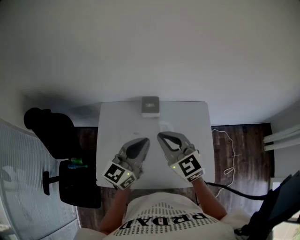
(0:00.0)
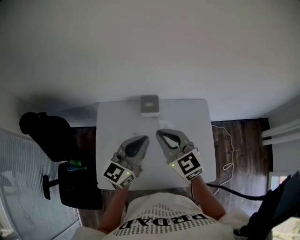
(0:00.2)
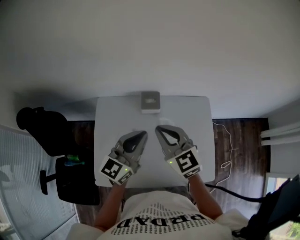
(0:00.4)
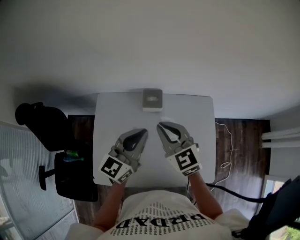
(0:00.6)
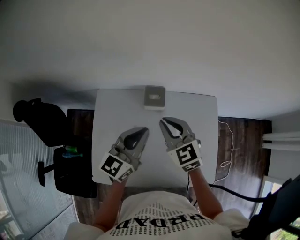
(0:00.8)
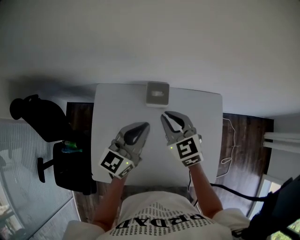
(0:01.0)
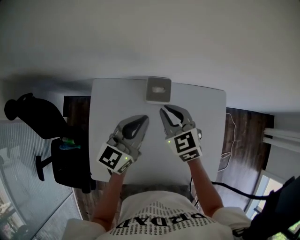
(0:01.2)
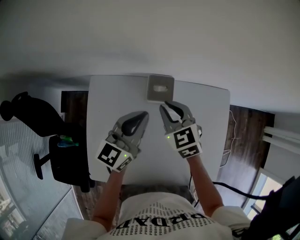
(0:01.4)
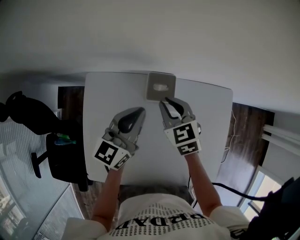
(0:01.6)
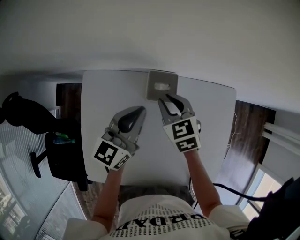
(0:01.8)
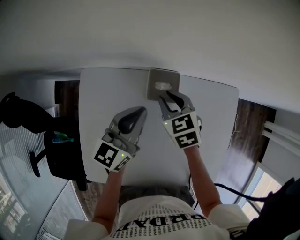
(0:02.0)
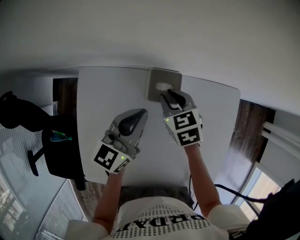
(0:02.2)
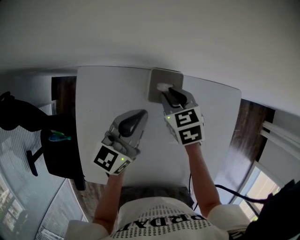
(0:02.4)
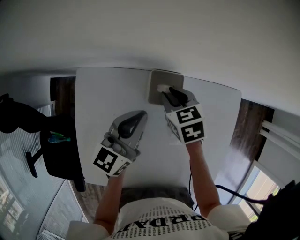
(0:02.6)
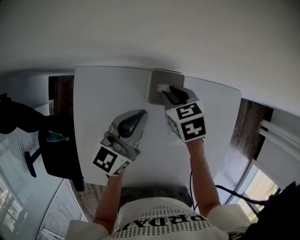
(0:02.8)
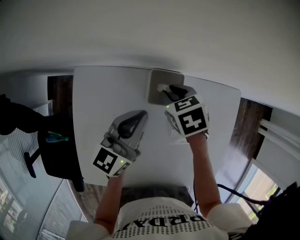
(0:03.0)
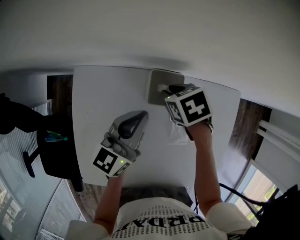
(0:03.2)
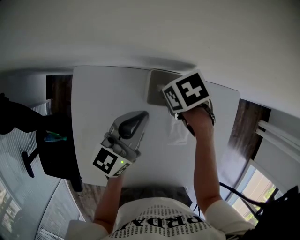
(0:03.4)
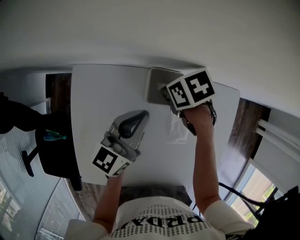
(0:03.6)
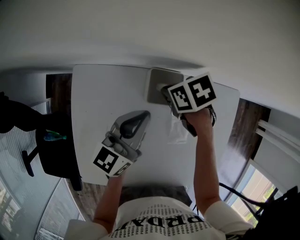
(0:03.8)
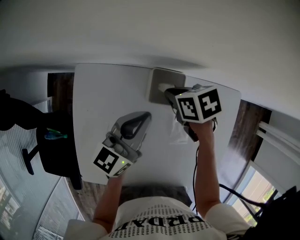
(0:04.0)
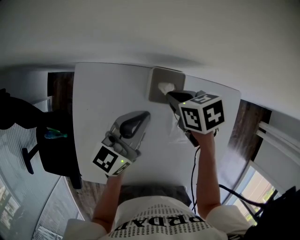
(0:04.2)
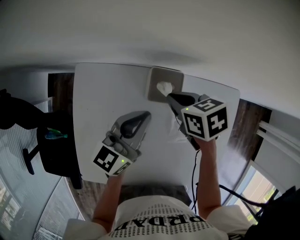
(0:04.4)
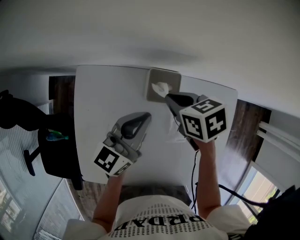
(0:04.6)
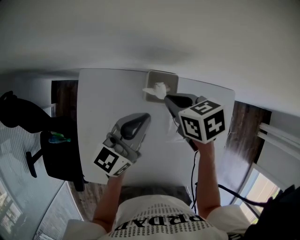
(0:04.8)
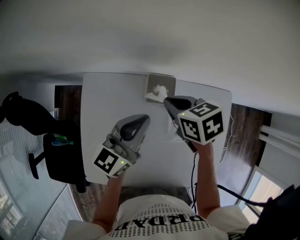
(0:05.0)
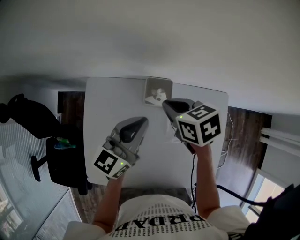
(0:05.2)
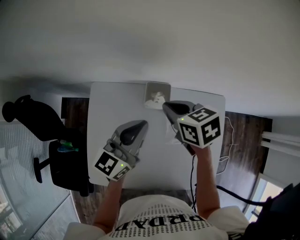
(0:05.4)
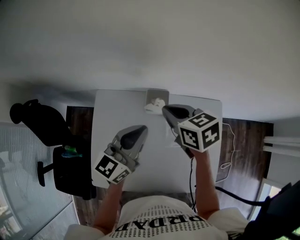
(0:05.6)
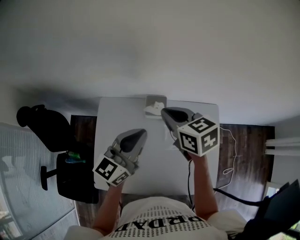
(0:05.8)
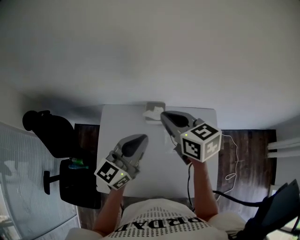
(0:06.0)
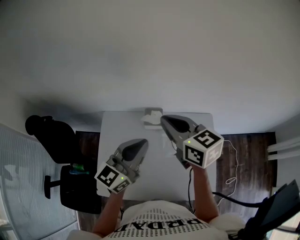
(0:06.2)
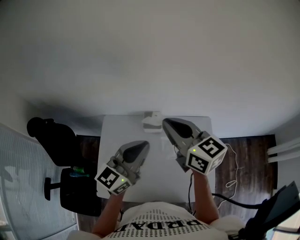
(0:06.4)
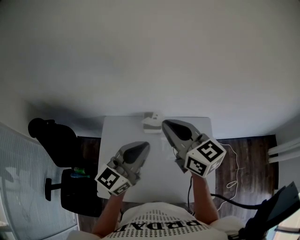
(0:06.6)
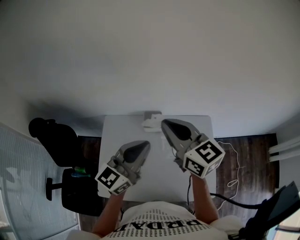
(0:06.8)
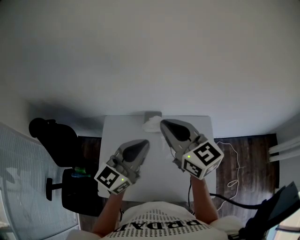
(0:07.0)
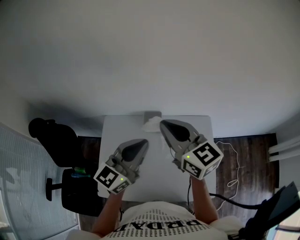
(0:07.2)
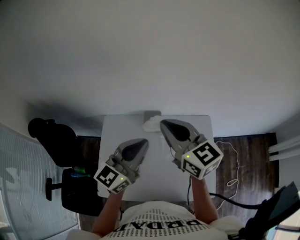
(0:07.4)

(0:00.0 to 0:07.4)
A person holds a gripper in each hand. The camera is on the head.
0:00.0 - 0:01.4: The two grippers go some 25 cm forward and downward. The right gripper rotates roughly 20 degrees.
0:01.4 - 0:03.0: The left gripper shifts about 10 cm downward. The right gripper moves downward and forward, some 15 cm, and turns by about 30 degrees.
0:03.0 - 0:04.4: The right gripper closes.
0:04.4 - 0:06.0: The left gripper shifts approximately 25 cm upward and backward; the right gripper moves upward, about 30 cm, and tips its fingers upward by some 30 degrees.
0:06.0 - 0:07.4: The right gripper goes roughly 5 cm upward.

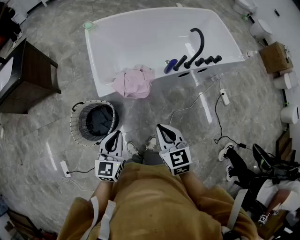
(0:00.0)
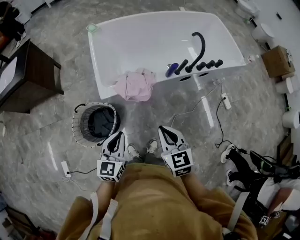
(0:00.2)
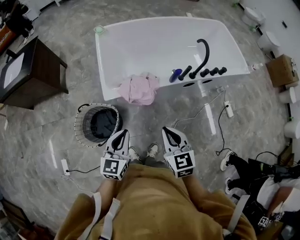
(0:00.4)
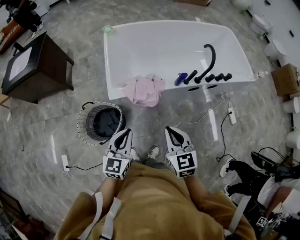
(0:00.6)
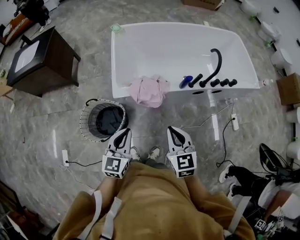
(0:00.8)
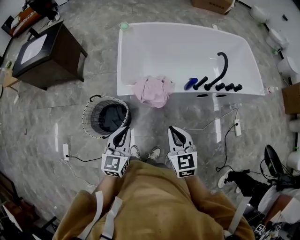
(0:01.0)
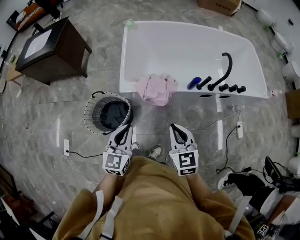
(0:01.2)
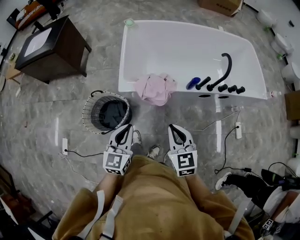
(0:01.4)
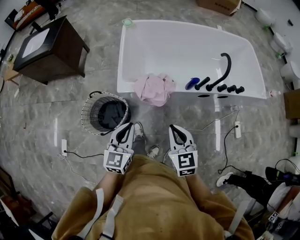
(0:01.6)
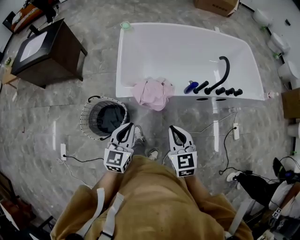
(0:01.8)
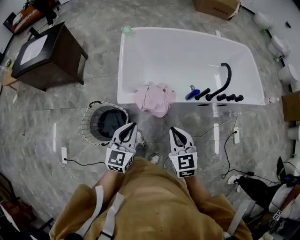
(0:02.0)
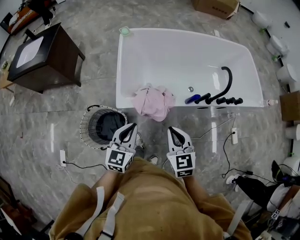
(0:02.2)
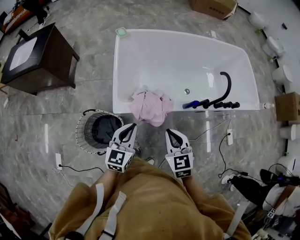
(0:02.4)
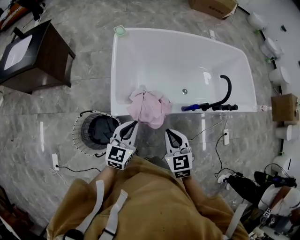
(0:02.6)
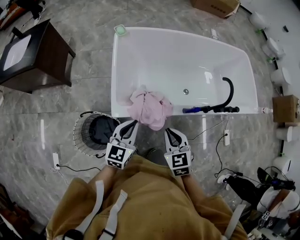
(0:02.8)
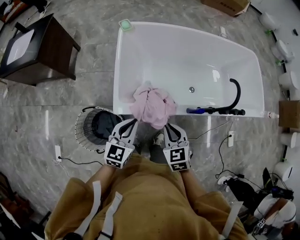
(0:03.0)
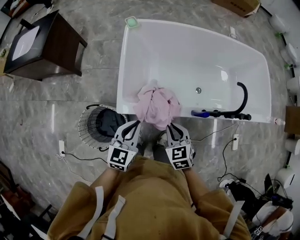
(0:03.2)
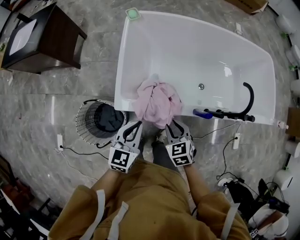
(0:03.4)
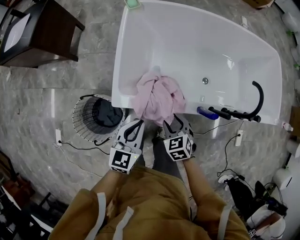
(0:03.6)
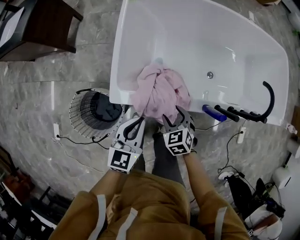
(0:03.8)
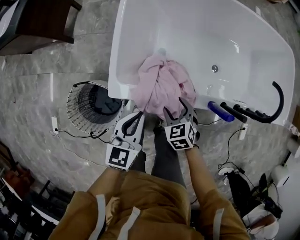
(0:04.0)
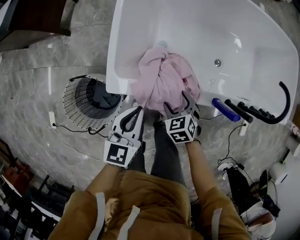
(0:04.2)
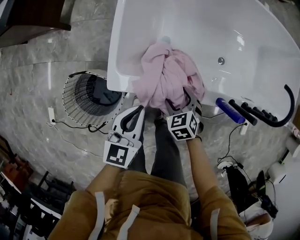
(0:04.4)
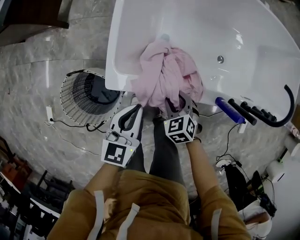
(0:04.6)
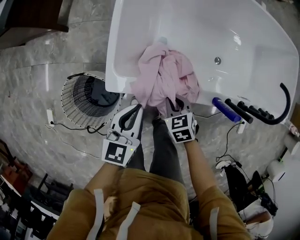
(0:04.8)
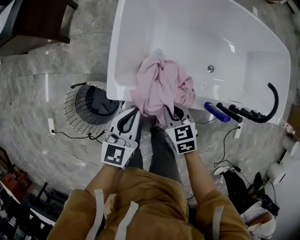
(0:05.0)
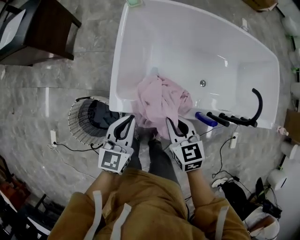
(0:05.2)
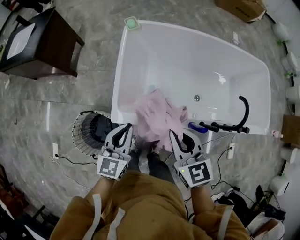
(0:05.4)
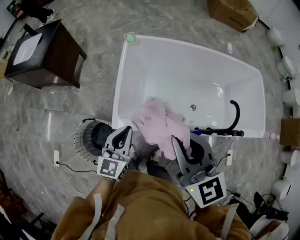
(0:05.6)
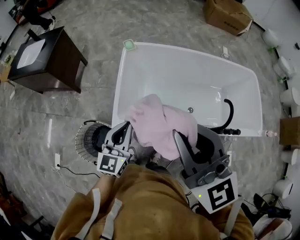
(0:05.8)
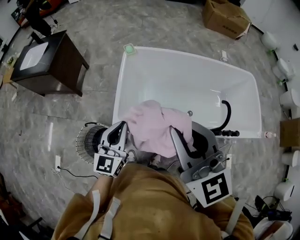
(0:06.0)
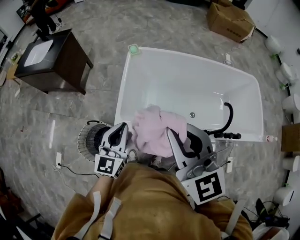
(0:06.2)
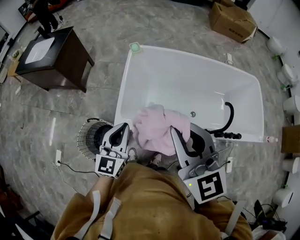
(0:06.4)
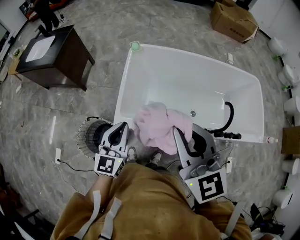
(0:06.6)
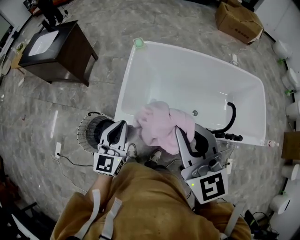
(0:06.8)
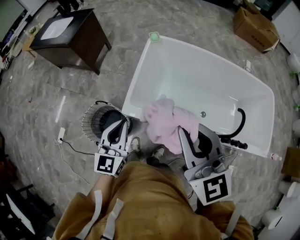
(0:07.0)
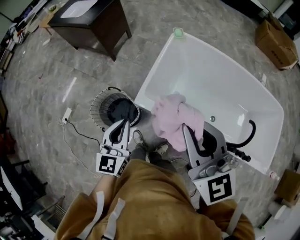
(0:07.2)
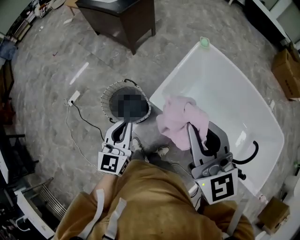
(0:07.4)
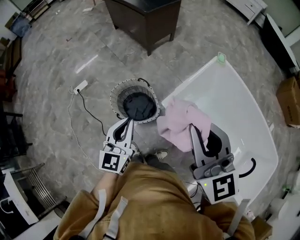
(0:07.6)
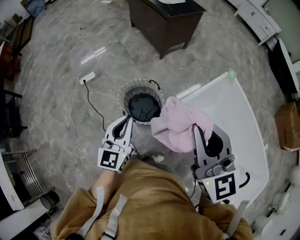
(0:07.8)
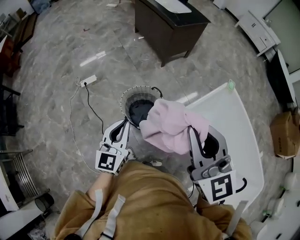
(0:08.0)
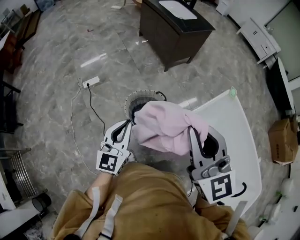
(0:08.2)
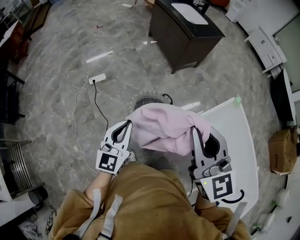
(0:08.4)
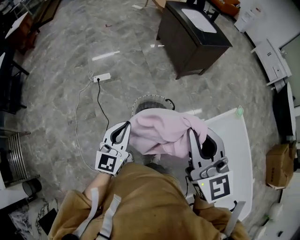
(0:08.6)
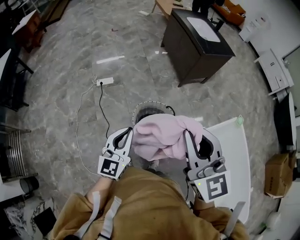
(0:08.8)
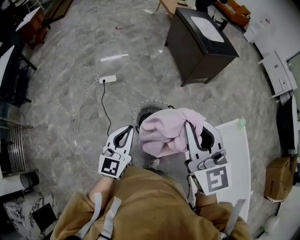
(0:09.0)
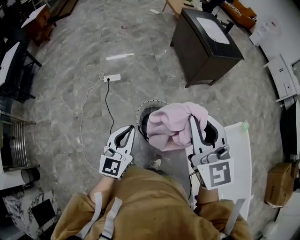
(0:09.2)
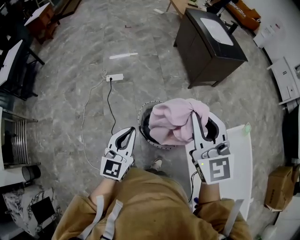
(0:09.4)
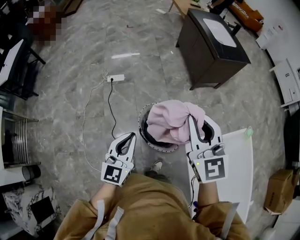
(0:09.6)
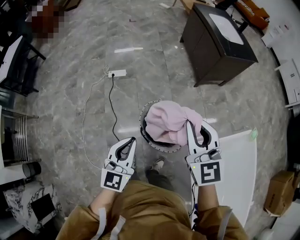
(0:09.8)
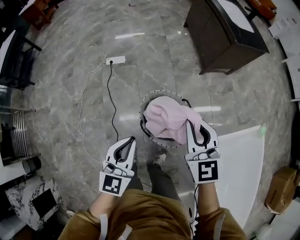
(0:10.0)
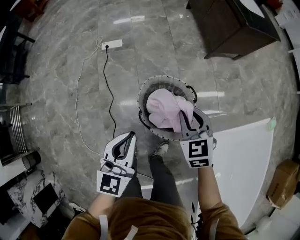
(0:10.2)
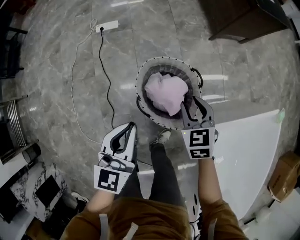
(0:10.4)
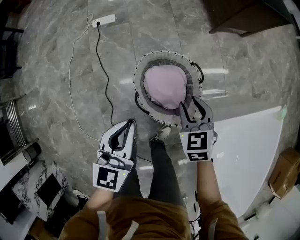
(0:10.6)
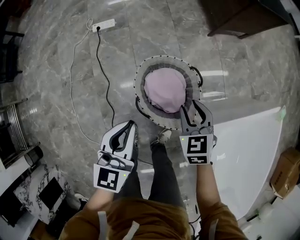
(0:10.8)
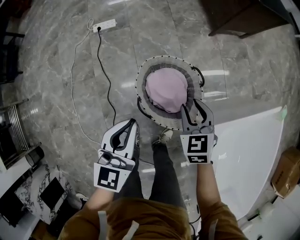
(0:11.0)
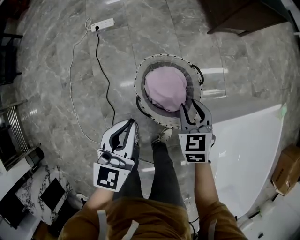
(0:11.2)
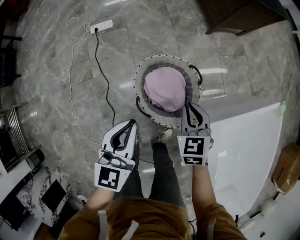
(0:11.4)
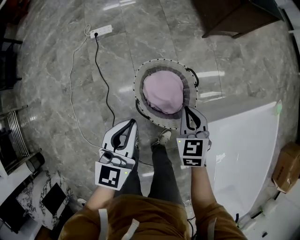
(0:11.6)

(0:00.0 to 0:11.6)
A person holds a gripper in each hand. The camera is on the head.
0:00.0 - 0:01.4: The grippers move only a little.
0:01.4 - 0:02.8: Both grippers move forward, about 20 cm.
0:02.8 - 0:04.4: The left gripper goes some 20 cm downward. The right gripper heads downward, covering about 30 cm, turns by some 30 degrees, and opens up.
0:04.4 - 0:05.8: The right gripper heads upward, covering roughly 70 cm, tilts its fingers approximately 60 degrees upward, and closes its fingers, while the left gripper heads upward, covering roughly 30 cm, and swivels roughly 20 degrees.
0:05.8 - 0:07.2: The left gripper is displaced backward and to the left by approximately 10 cm, and rotates approximately 30 degrees; the right gripper travels downward by some 5 cm.
0:07.2 - 0:08.8: The left gripper moves approximately 40 cm, and swivels approximately 40 degrees. The right gripper changes place by roughly 40 cm, and turns by about 40 degrees.
0:08.8 - 0:10.2: The left gripper heads downward, covering approximately 15 cm. The right gripper moves downward, roughly 40 cm, and points its fingers approximately 30 degrees further downward.
0:10.2 - 0:11.6: The right gripper is displaced downward by roughly 10 cm. Meanwhile the left gripper travels downward by approximately 5 cm.

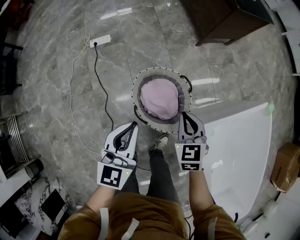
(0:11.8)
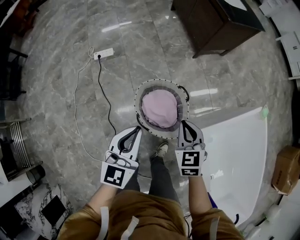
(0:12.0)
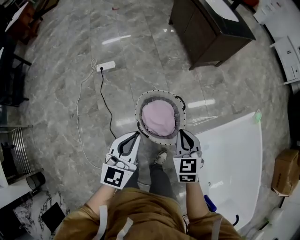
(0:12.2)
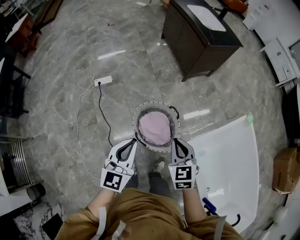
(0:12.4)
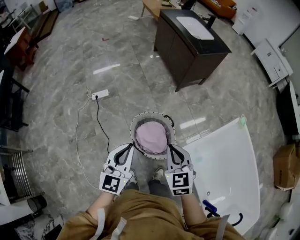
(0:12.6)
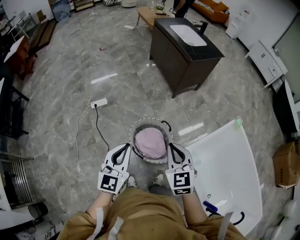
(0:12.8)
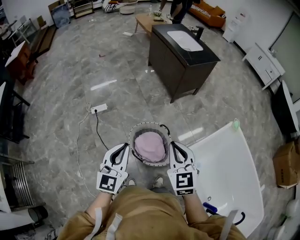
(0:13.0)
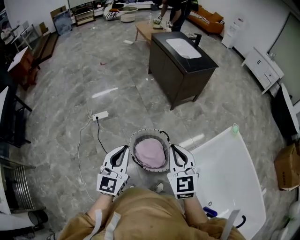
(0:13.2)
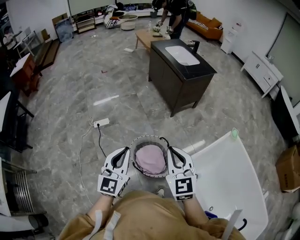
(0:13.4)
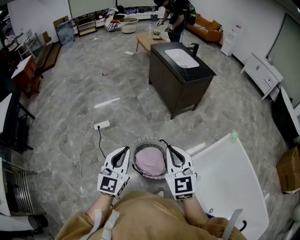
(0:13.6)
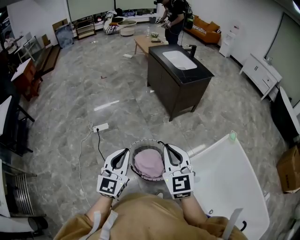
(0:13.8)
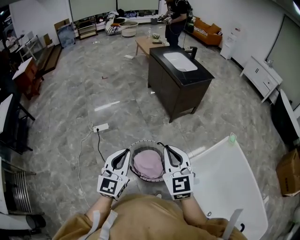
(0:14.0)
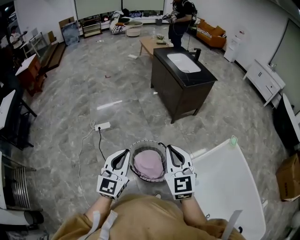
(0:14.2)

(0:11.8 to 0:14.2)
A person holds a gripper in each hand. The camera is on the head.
0:11.8 - 0:13.0: The two grippers go approximately 25 cm upward. The right gripper rotates roughly 20 degrees.
0:13.0 - 0:14.2: The right gripper travels upward by some 5 cm, while the left gripper moves roughly 5 cm.

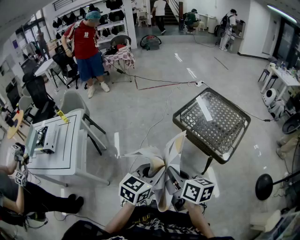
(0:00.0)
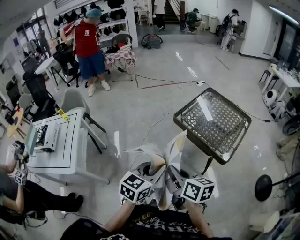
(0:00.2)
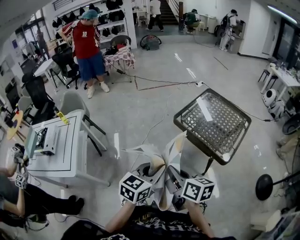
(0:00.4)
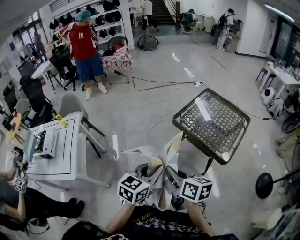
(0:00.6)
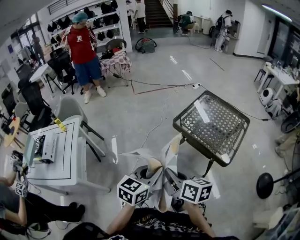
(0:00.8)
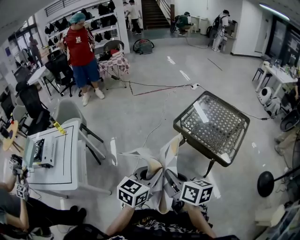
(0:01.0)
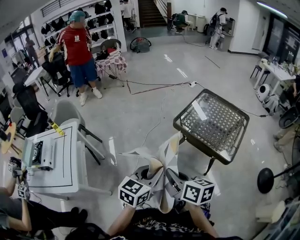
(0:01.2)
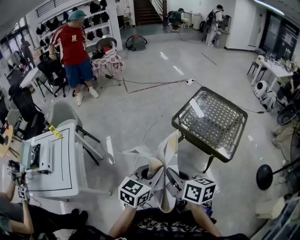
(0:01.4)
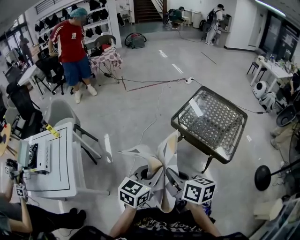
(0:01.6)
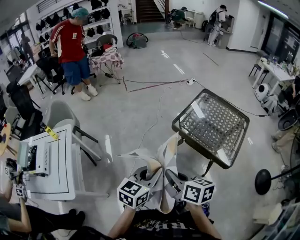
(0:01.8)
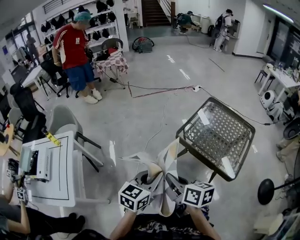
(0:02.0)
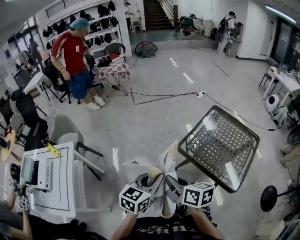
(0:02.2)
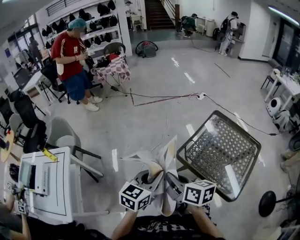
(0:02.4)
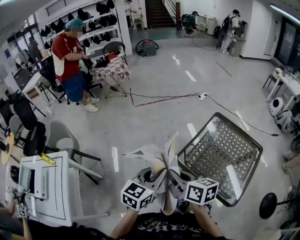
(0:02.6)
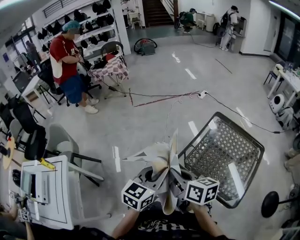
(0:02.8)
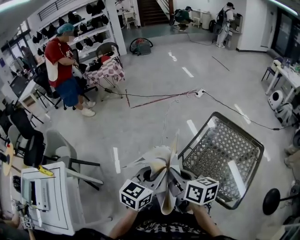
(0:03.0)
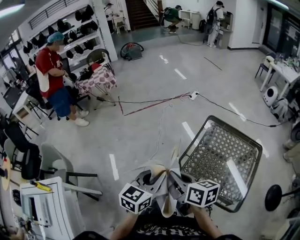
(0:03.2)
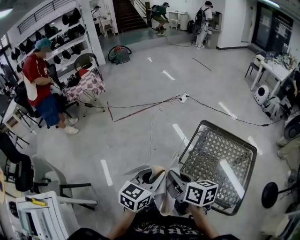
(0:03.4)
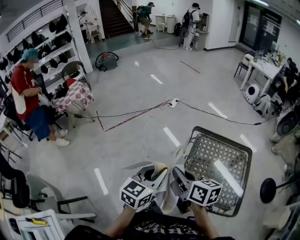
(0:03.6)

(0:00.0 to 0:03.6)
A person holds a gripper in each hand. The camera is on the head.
0:00.0 - 0:01.8: Both grippers move forward and to the left, approximately 15 cm.
0:01.8 - 0:03.6: The pair of grippers is taken forward, roughly 60 cm.
